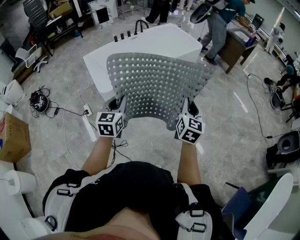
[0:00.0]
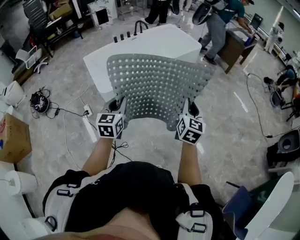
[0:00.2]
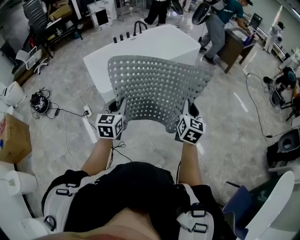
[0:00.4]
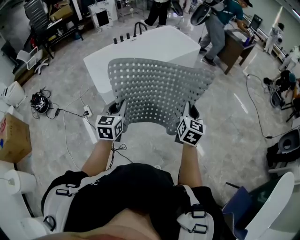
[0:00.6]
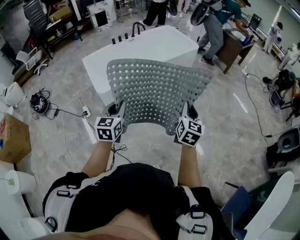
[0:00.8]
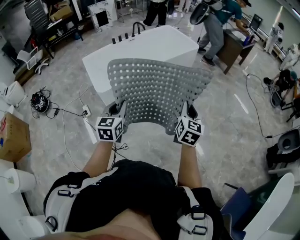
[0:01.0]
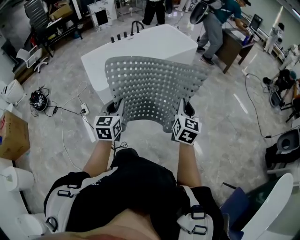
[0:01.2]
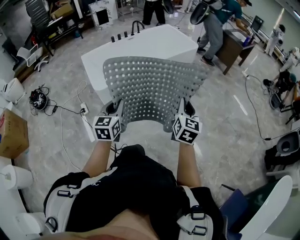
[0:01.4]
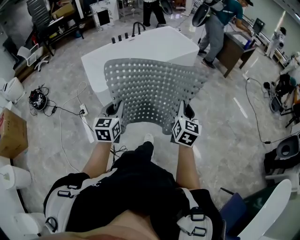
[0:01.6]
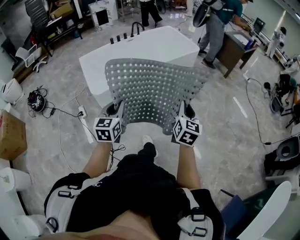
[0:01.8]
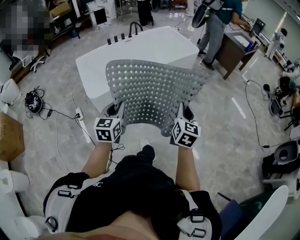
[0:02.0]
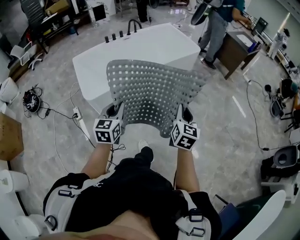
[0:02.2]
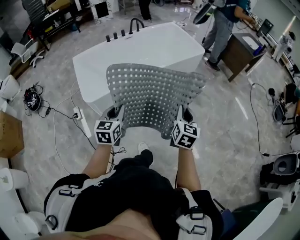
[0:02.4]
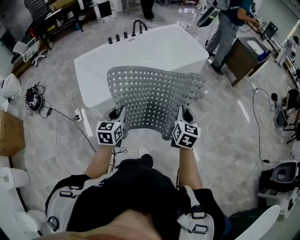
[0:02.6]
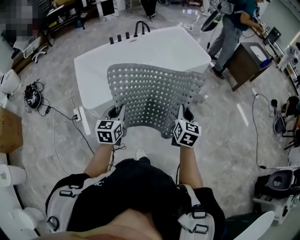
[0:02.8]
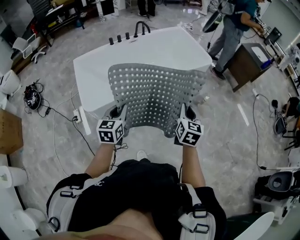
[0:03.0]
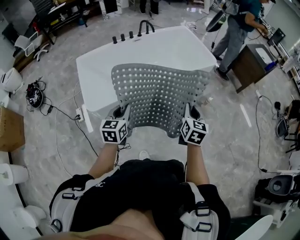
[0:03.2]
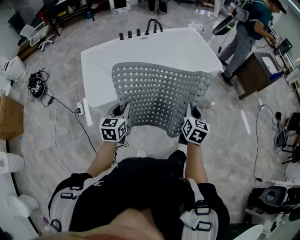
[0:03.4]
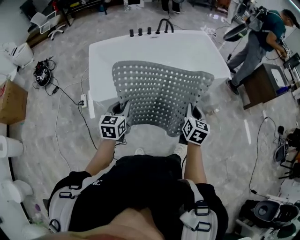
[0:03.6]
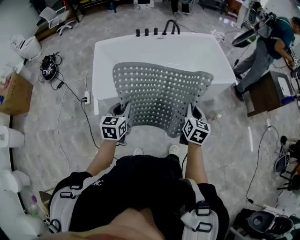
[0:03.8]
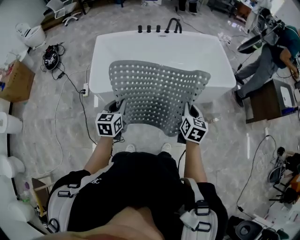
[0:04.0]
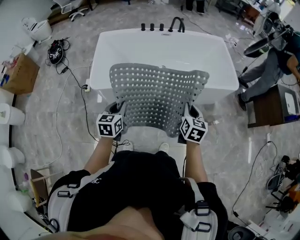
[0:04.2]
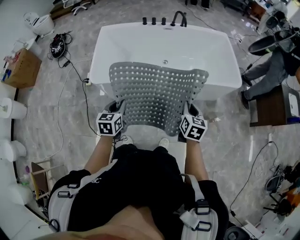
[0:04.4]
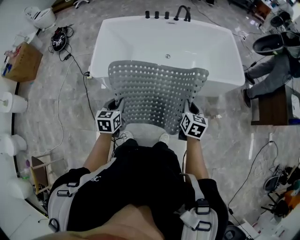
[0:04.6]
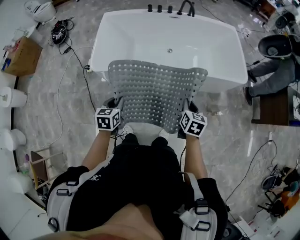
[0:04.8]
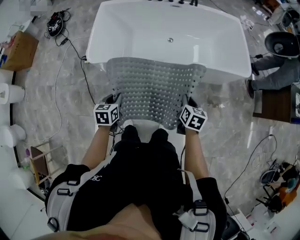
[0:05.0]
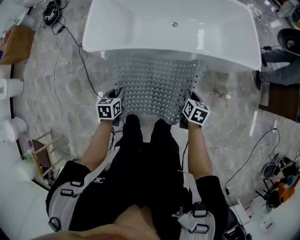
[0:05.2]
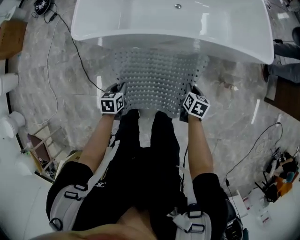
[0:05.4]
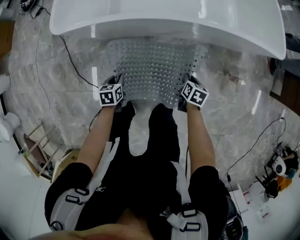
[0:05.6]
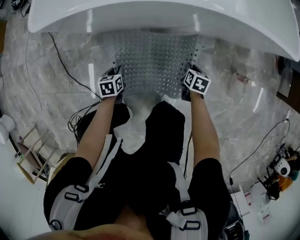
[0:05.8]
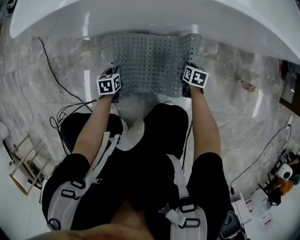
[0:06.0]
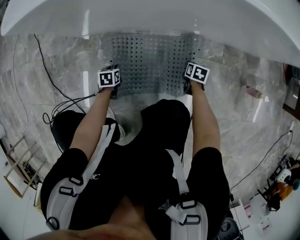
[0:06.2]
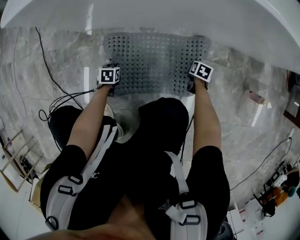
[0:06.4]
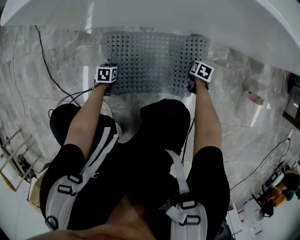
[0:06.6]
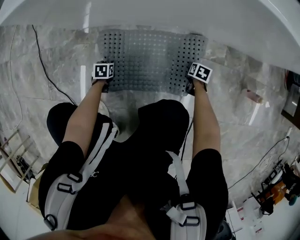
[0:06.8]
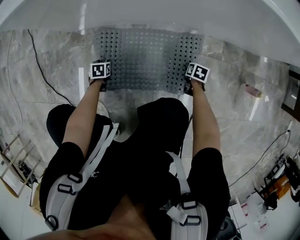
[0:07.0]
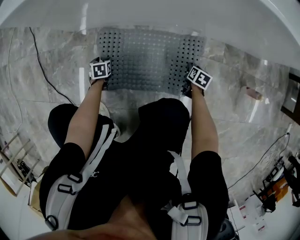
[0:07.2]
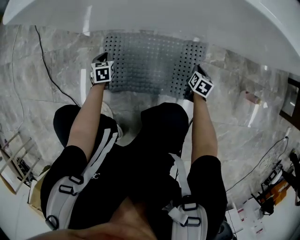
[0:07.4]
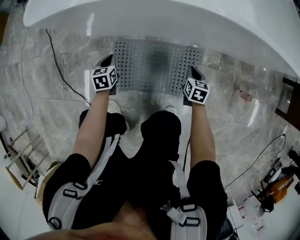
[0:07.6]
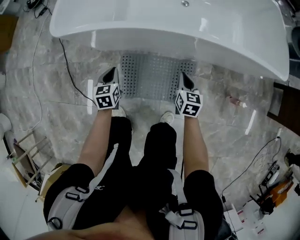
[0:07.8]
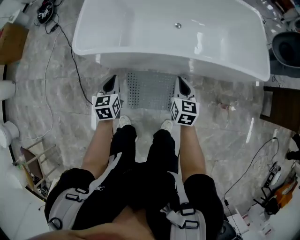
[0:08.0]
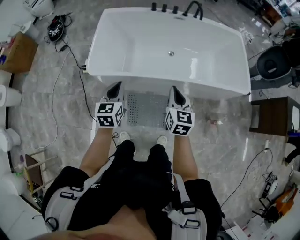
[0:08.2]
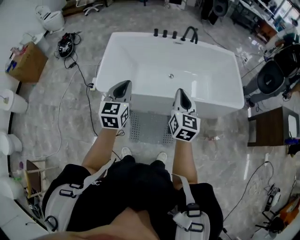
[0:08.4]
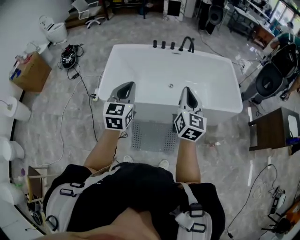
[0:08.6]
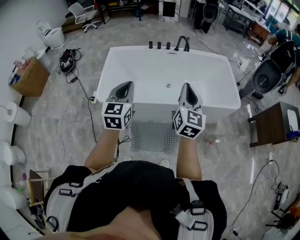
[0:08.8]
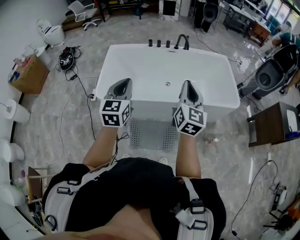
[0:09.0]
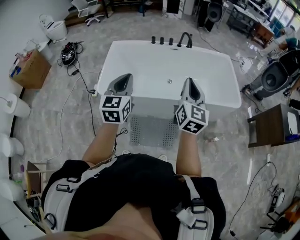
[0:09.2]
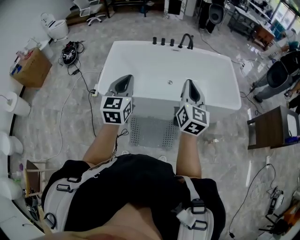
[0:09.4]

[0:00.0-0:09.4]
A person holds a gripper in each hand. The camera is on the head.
0:00.0 to 0:01.6: The two grippers go about 5 cm to the right.
0:01.6 to 0:03.2: Both grippers move forward, some 35 cm.
0:03.2 to 0:04.8: The left gripper shifts approximately 10 cm downward, and swivels approximately 30 degrees. The right gripper moves approximately 20 cm, and changes its angle by approximately 30 degrees.
0:04.8 to 0:06.2: The grippers both shift downward by approximately 80 cm. The left gripper swivels roughly 30 degrees; the right gripper turns by approximately 30 degrees.
0:06.2 to 0:07.8: Both grippers travel together upward, approximately 40 cm. The right gripper rotates about 30 degrees, and opens, then closes again, while the left gripper swivels some 30 degrees, and opens, then closes once more.
0:07.8 to 0:09.4: Both grippers travel together upward, roughly 70 cm. The left gripper tips its fingers upward by roughly 30 degrees, while the right gripper points its fingers about 40 degrees further upward.

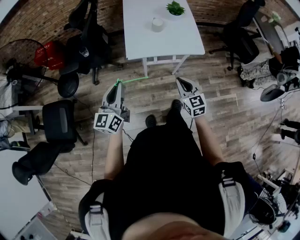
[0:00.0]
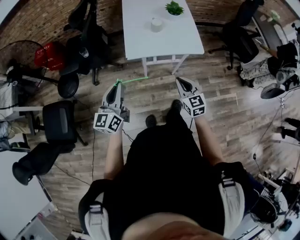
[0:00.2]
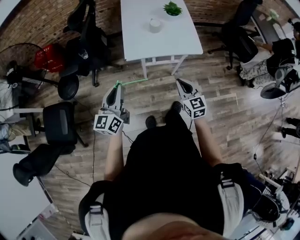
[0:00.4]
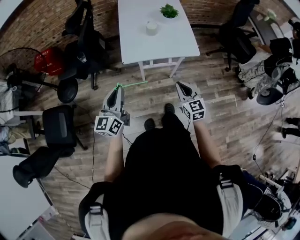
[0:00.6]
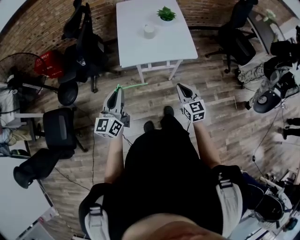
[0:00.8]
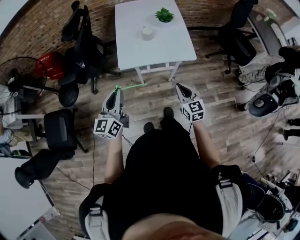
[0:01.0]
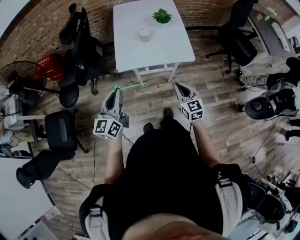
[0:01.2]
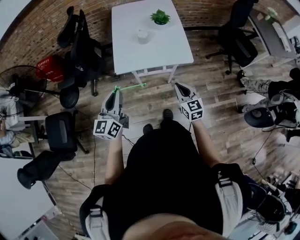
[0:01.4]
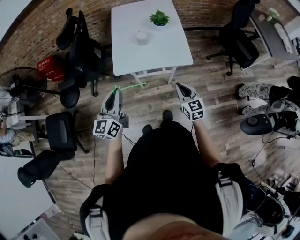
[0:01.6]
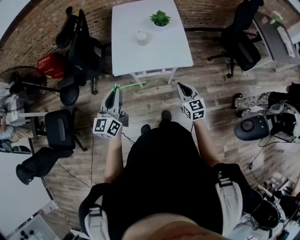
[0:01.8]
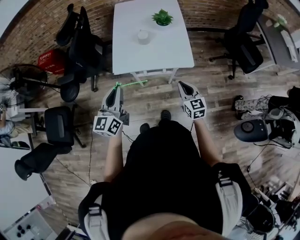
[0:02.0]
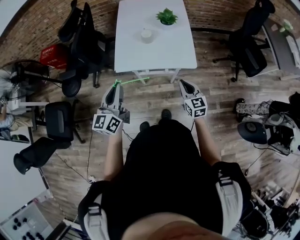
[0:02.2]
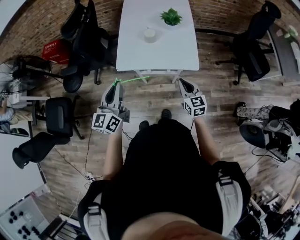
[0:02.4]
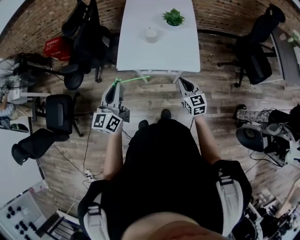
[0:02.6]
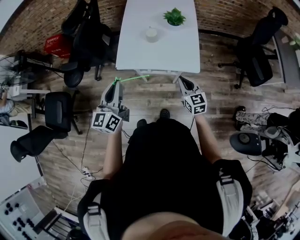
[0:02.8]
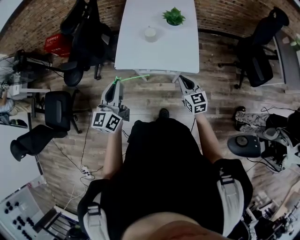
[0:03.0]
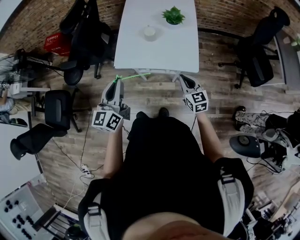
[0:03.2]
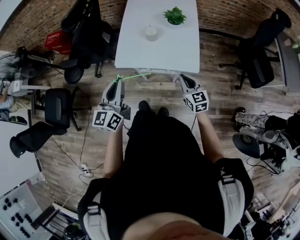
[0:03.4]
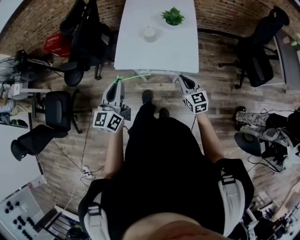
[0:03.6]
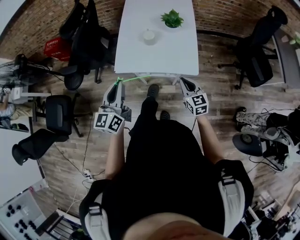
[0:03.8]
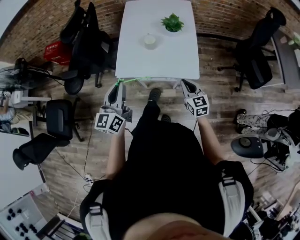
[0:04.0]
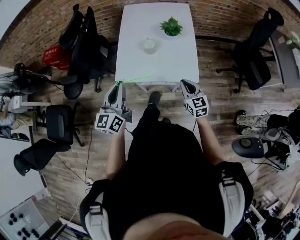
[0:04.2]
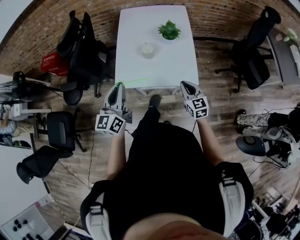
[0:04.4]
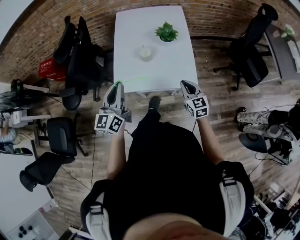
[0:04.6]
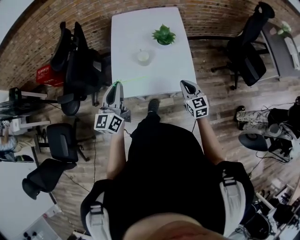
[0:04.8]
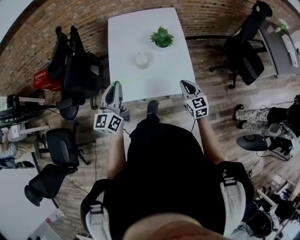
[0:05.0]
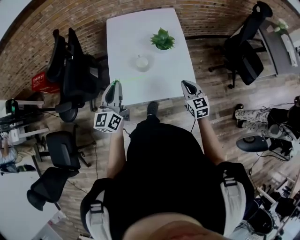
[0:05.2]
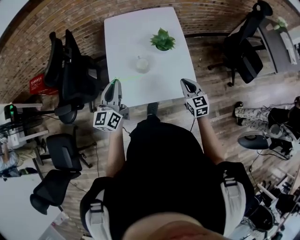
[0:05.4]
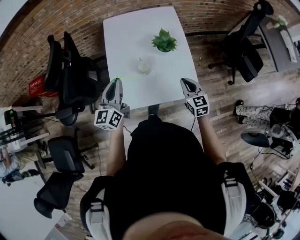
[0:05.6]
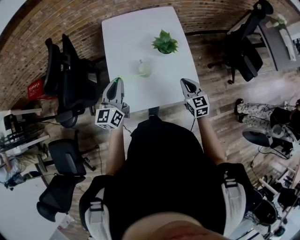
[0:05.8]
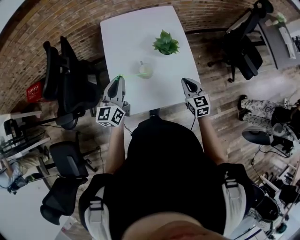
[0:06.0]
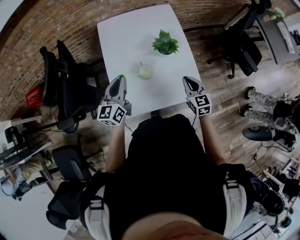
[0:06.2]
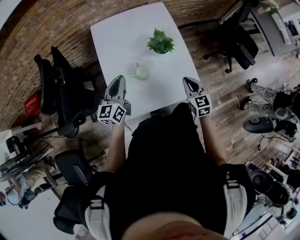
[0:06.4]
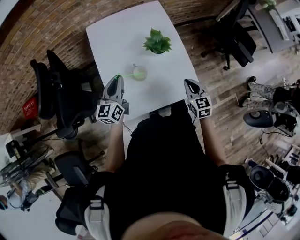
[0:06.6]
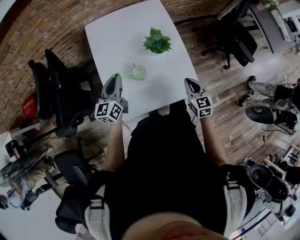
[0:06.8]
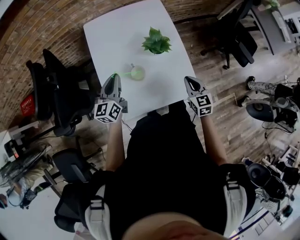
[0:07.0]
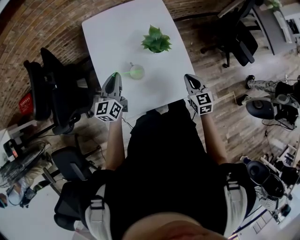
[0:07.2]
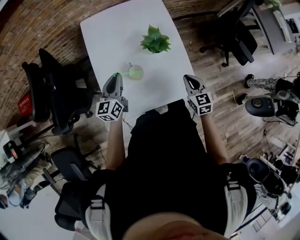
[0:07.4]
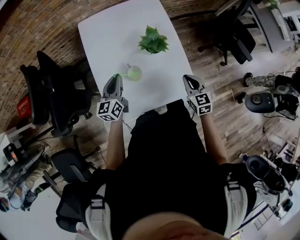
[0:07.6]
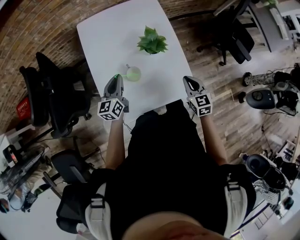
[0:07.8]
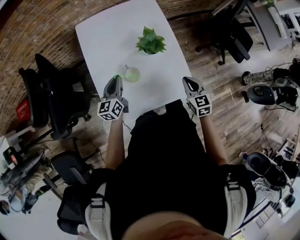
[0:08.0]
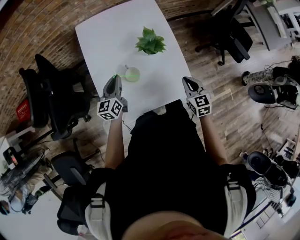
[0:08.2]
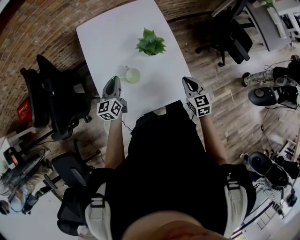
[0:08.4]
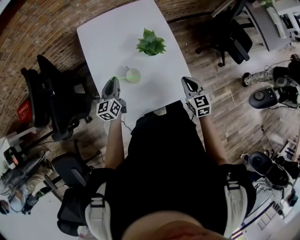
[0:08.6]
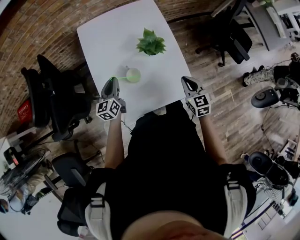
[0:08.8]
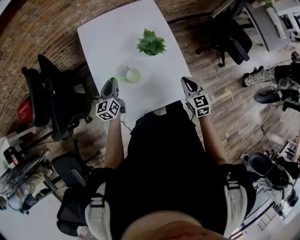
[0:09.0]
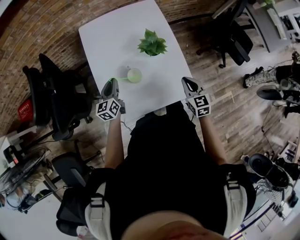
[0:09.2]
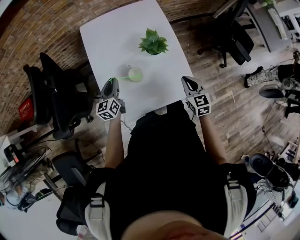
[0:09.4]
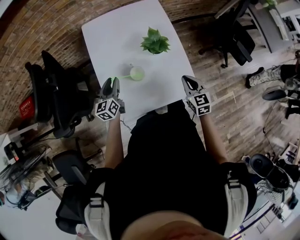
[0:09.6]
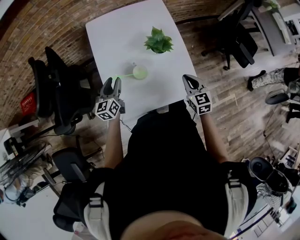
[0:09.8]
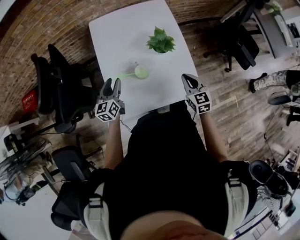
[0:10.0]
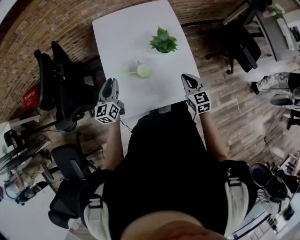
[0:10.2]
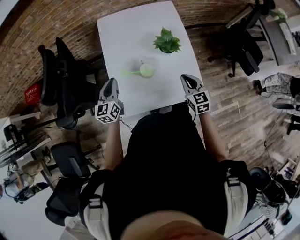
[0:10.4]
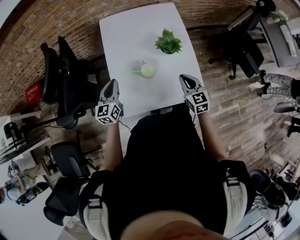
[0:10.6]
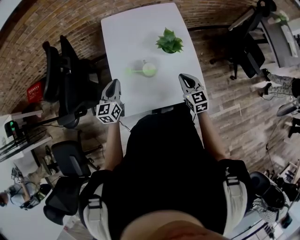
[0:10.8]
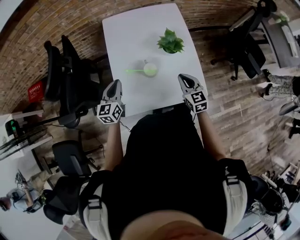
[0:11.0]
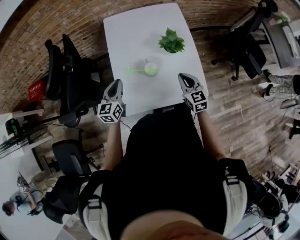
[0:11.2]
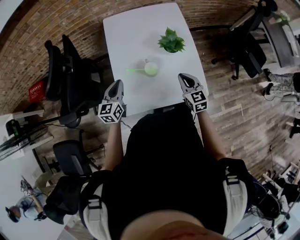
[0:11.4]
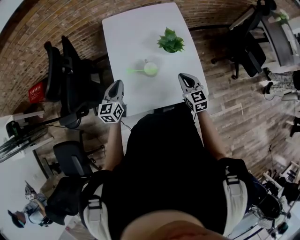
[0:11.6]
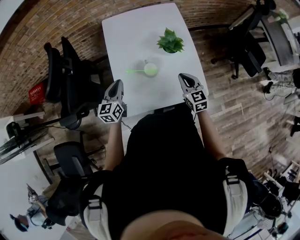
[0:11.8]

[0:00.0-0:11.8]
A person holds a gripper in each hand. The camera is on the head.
0:00.0 to 0:01.4: The two grippers go about 10 cm to the right.
0:01.4 to 0:03.0: The right gripper shifts roughly 15 cm forward and to the right, while the left gripper goes roughly 10 cm to the right and forward.
0:03.0 to 0:04.4: The right gripper is displaced forward by approximately 5 cm, while the left gripper heads forward, covering approximately 10 cm.
0:04.4 to 0:06.0: The left gripper heads forward, covering about 25 cm. The right gripper is displaced forward by some 15 cm.
0:06.0 to 0:07.4: The right gripper heads to the right, covering about 5 cm; the left gripper travels downward and forward by approximately 15 cm.
0:07.4 to 0:08.8: The left gripper travels downward by roughly 5 cm.
0:08.8 to 0:10.4: The left gripper moves to the left, upward and backward, about 10 cm, and opens, then closes once more, while the right gripper shifts some 5 cm to the left.
0:10.4 to 0:11.8: There are only small adjustments of the grippers.

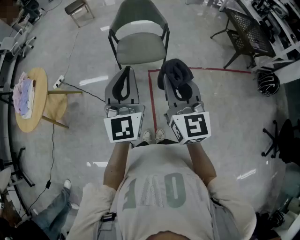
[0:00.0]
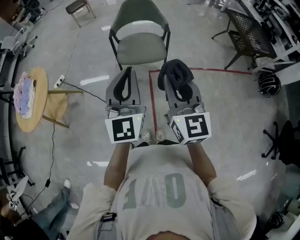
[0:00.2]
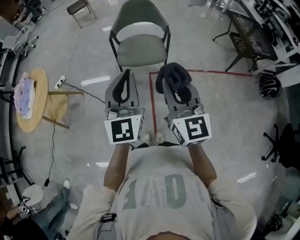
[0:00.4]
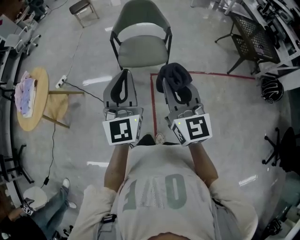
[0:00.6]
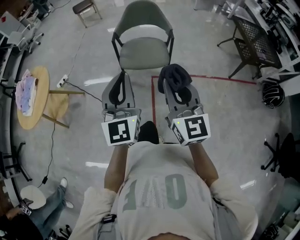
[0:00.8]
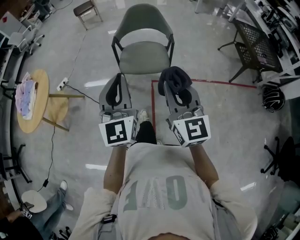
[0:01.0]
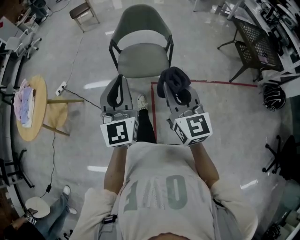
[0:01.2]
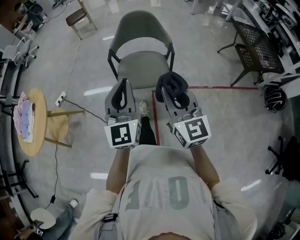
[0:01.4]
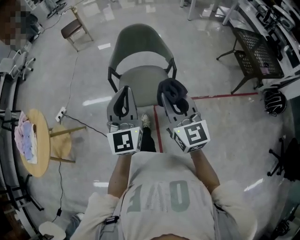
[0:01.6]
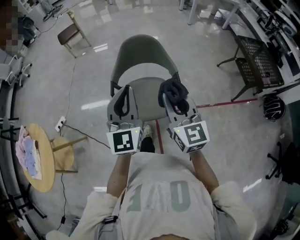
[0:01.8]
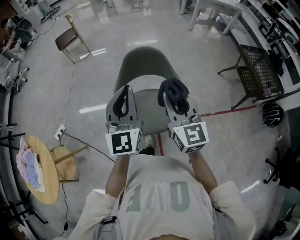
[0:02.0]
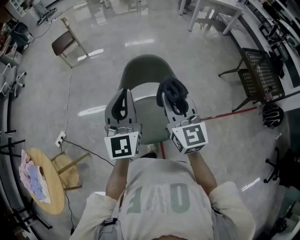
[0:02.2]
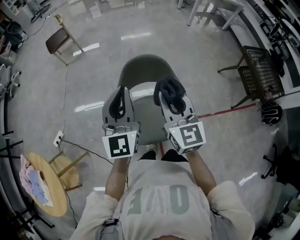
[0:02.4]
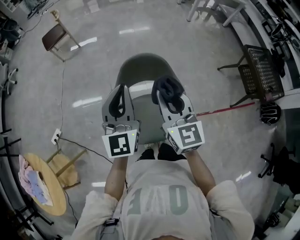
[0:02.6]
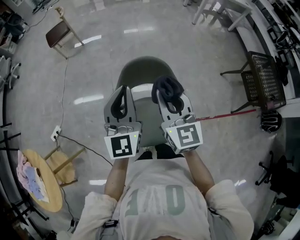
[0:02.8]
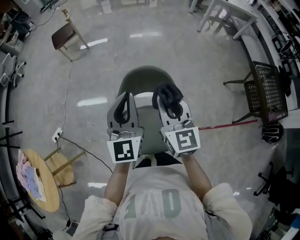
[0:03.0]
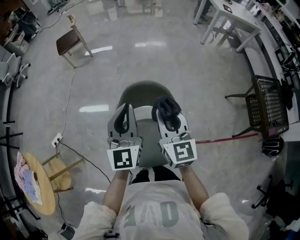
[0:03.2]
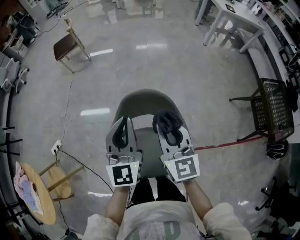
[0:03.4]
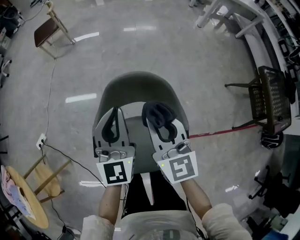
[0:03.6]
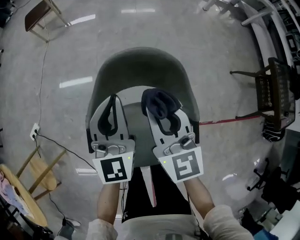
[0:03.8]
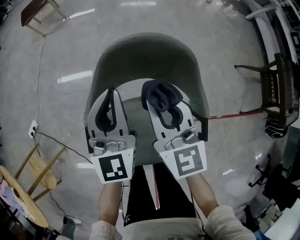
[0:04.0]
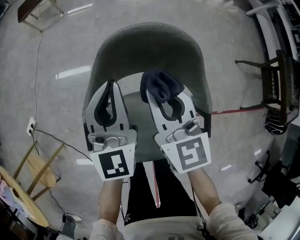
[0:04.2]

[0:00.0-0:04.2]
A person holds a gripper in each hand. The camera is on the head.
0:00.0 to 0:01.4: The grippers both shift forward by about 15 cm.
0:01.4 to 0:02.8: The two grippers travel together, forward, some 50 cm.
0:02.8 to 0:04.2: The right gripper shifts approximately 25 cm downward and forward; the left gripper moves downward, approximately 25 cm.
